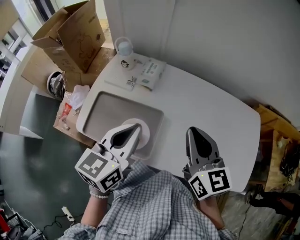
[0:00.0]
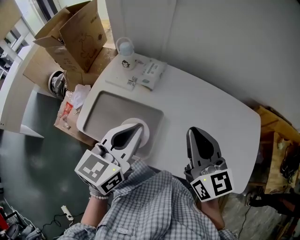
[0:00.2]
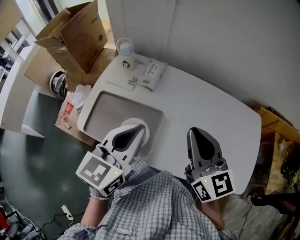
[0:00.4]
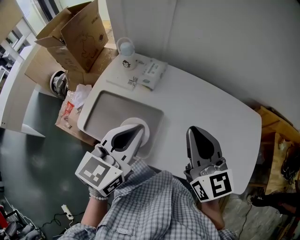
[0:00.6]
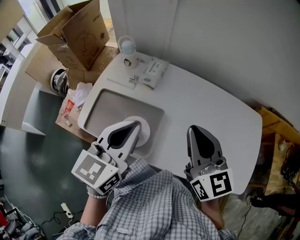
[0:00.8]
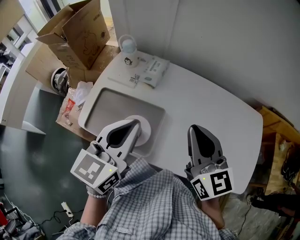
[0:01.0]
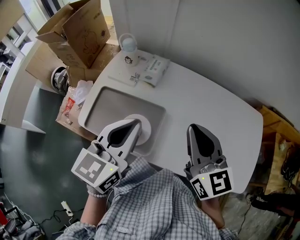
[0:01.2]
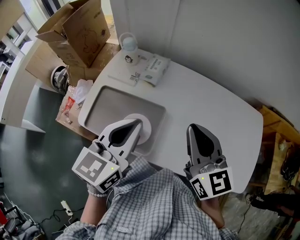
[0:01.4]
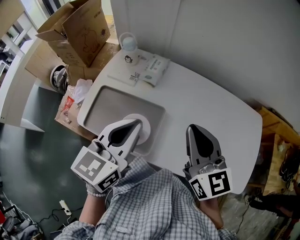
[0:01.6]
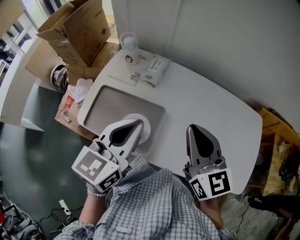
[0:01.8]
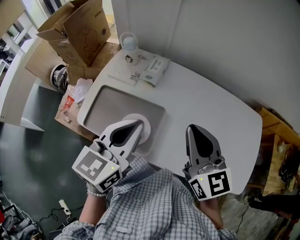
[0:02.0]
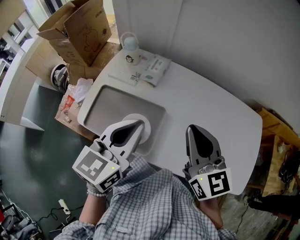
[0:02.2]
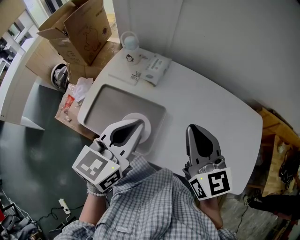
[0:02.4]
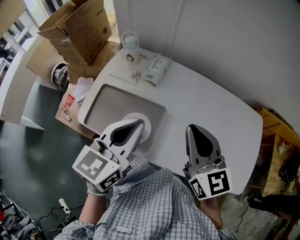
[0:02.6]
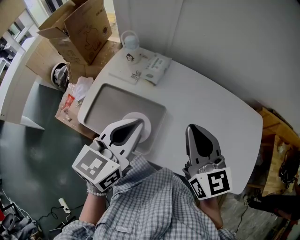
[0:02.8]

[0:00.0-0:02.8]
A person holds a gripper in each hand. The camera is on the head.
0:00.0 to 0:01.4: There are only small adjustments of the grippers.
0:01.4 to 0:02.8: Both grippers stay put.

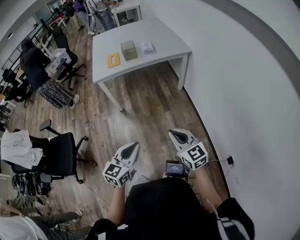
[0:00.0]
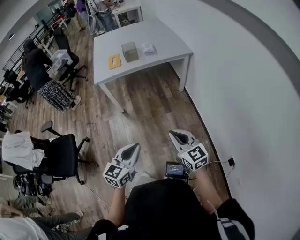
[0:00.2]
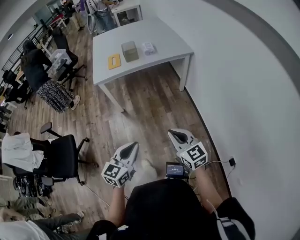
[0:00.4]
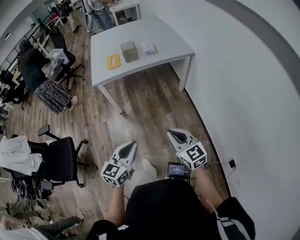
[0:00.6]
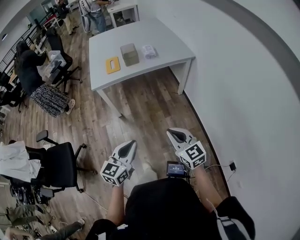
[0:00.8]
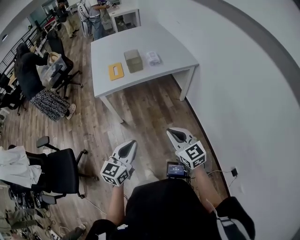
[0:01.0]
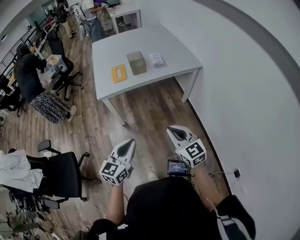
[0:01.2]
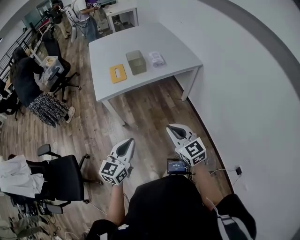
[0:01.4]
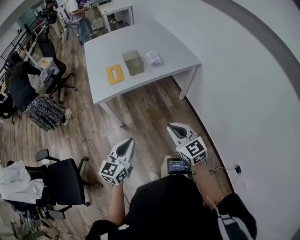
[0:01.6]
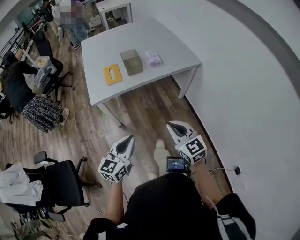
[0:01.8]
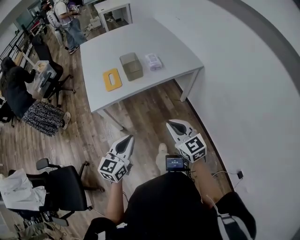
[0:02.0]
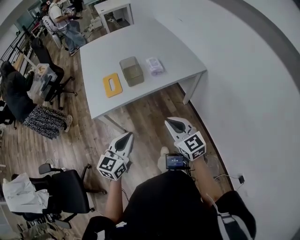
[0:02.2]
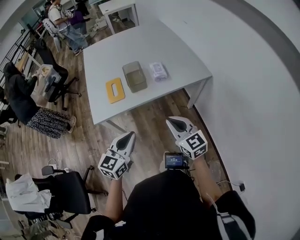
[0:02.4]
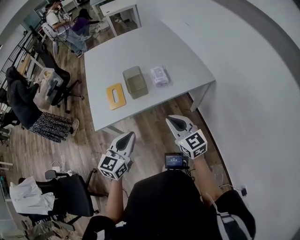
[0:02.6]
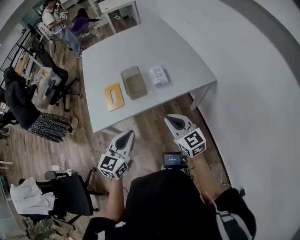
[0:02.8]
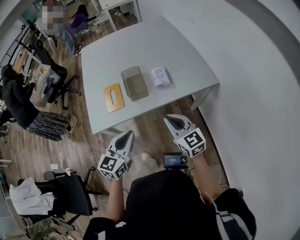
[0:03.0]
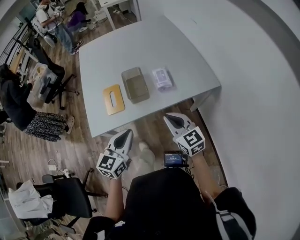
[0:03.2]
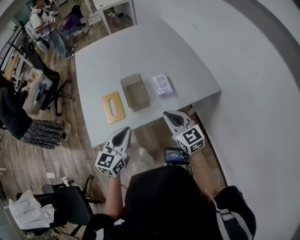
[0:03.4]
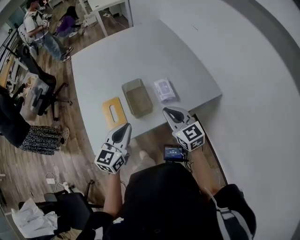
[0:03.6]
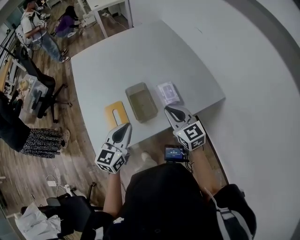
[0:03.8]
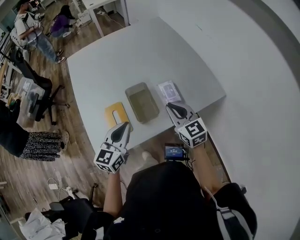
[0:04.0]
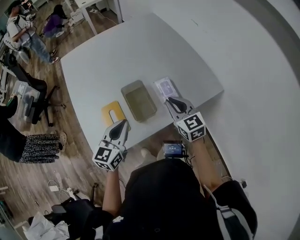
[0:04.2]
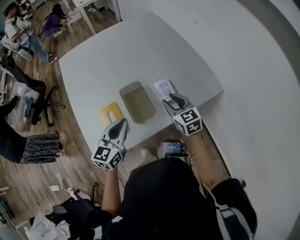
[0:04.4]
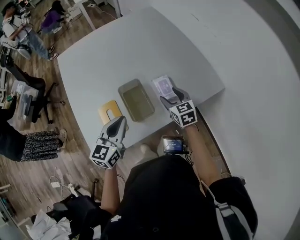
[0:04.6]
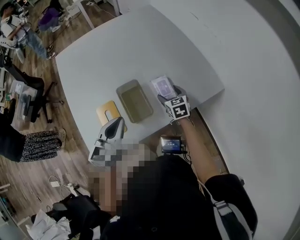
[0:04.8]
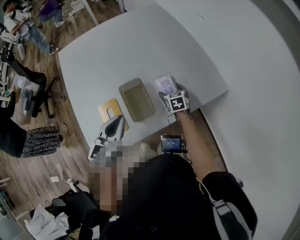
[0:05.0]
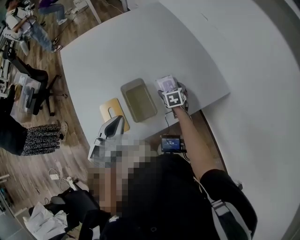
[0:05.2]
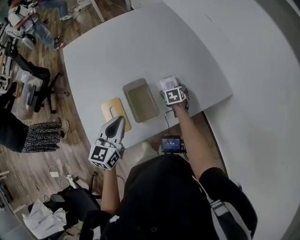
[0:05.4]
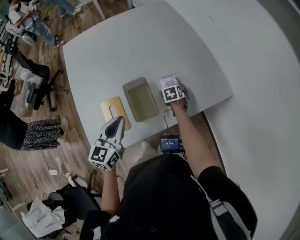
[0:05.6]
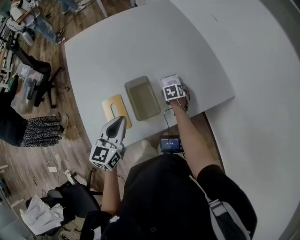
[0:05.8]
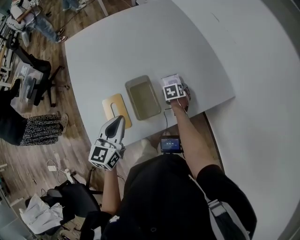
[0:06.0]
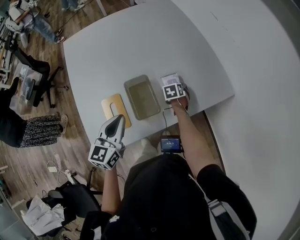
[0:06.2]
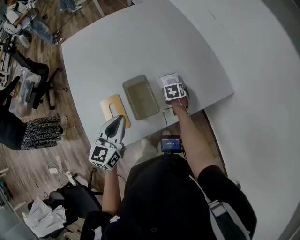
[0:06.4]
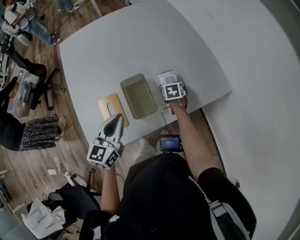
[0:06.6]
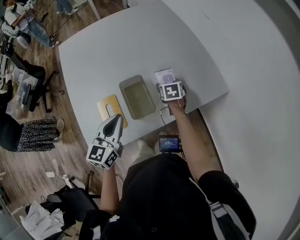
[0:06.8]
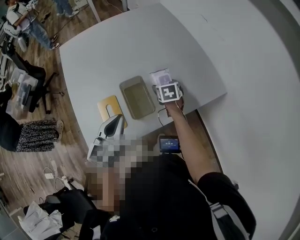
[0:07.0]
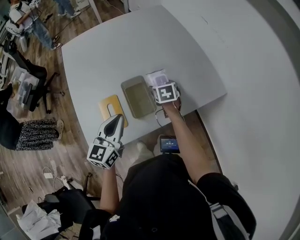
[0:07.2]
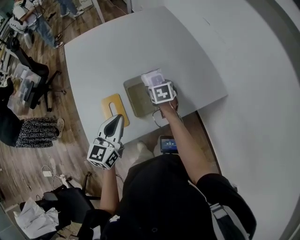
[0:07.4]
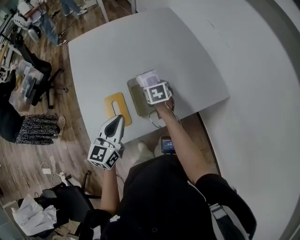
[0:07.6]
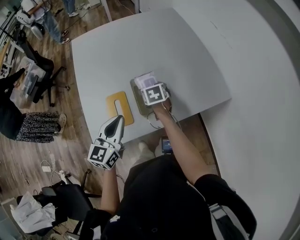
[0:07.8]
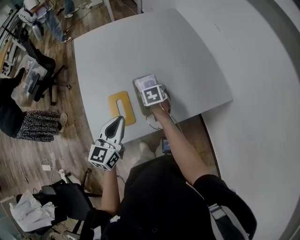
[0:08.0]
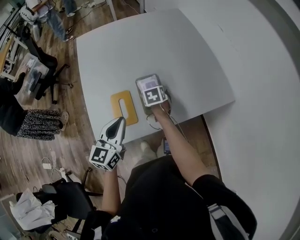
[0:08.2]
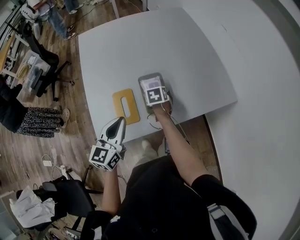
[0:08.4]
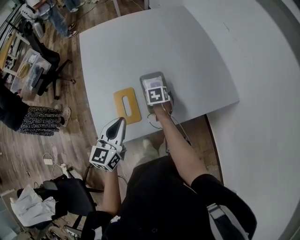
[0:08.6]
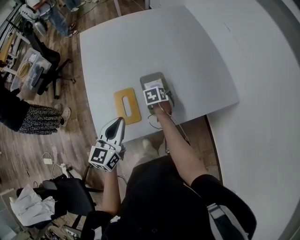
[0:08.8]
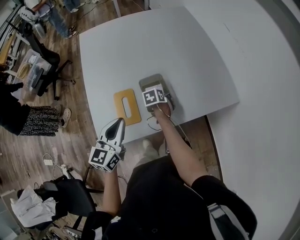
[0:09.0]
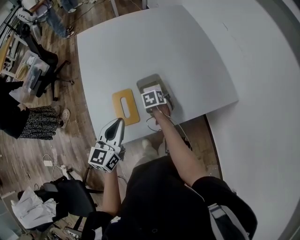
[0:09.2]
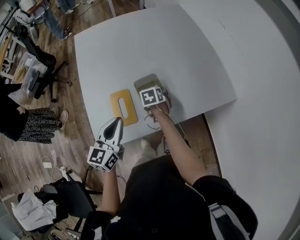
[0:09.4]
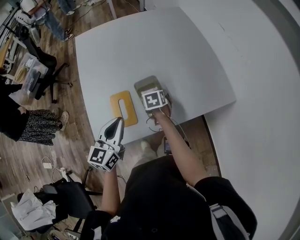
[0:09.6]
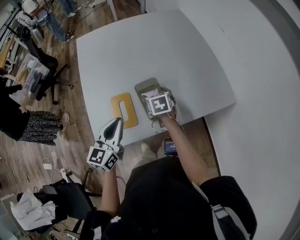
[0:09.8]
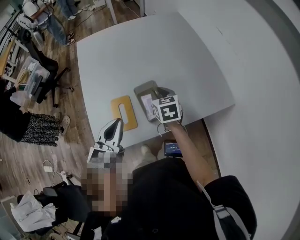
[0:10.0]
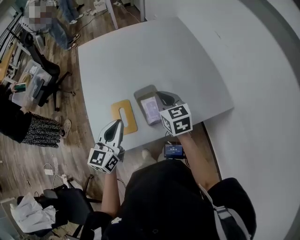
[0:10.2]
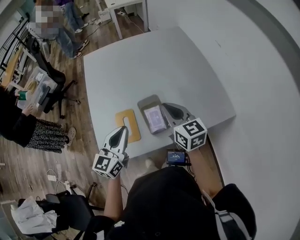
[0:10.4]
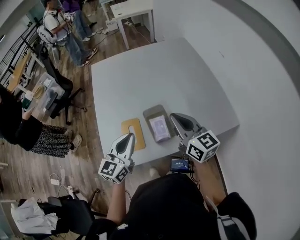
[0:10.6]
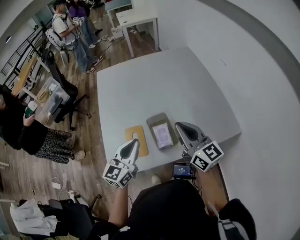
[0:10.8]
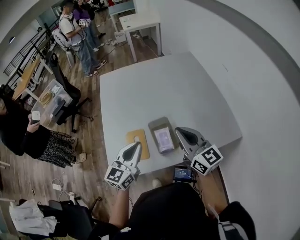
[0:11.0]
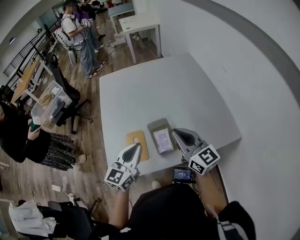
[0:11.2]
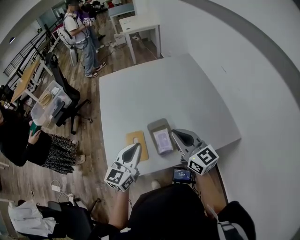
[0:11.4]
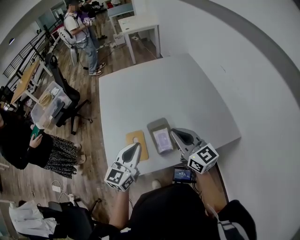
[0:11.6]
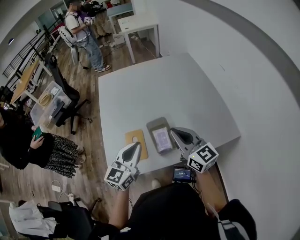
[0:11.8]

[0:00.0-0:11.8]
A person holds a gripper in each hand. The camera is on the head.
0:00.0 to 0:01.4: The grippers both shift forward and to the left by about 25 cm.
0:01.4 to 0:03.0: Both grippers move forward, roughly 35 cm.
0:03.0 to 0:04.4: The grippers both shift forward by approximately 25 cm. The right gripper turns by roughly 20 degrees.
0:04.4 to 0:06.0: The right gripper is displaced downward and forward by approximately 25 cm, points its fingers approximately 40 degrees further downward, and opens its fingers.
0:06.0 to 0:07.4: The right gripper heads upward and to the left, covering roughly 15 cm.
0:07.4 to 0:08.8: The left gripper goes some 5 cm to the left. The right gripper is displaced downward and to the left by some 10 cm.
0:08.8 to 0:10.4: The right gripper travels upward by some 30 cm, tilts its fingers about 50 degrees upward, and closes. The left gripper heads upward, covering roughly 5 cm.
0:10.4 to 0:11.8: The right gripper goes roughly 5 cm upward.

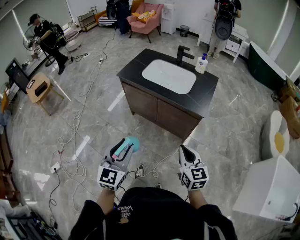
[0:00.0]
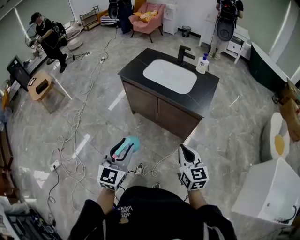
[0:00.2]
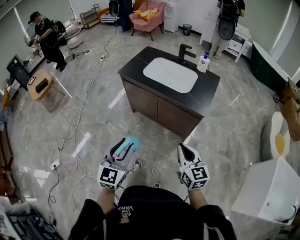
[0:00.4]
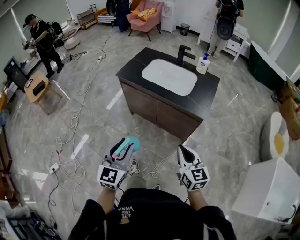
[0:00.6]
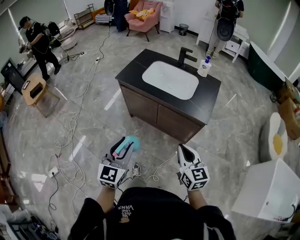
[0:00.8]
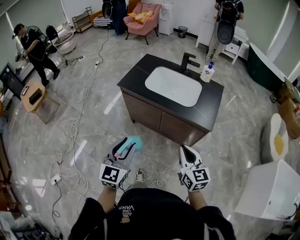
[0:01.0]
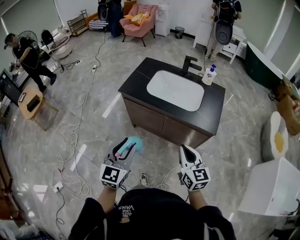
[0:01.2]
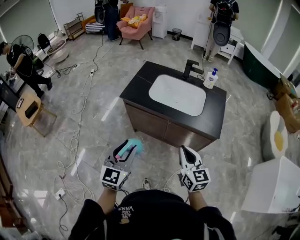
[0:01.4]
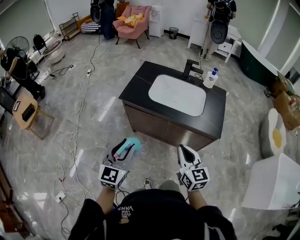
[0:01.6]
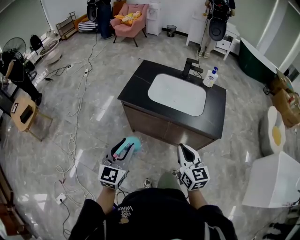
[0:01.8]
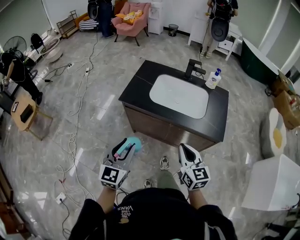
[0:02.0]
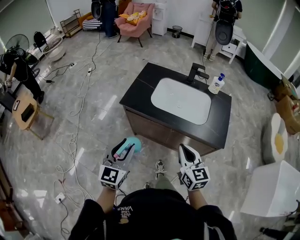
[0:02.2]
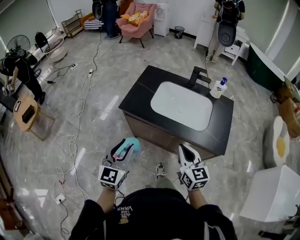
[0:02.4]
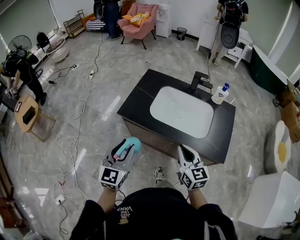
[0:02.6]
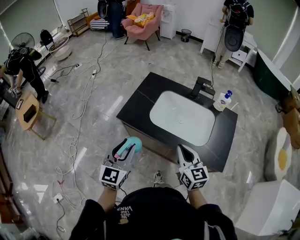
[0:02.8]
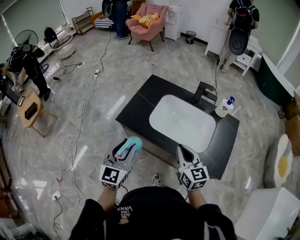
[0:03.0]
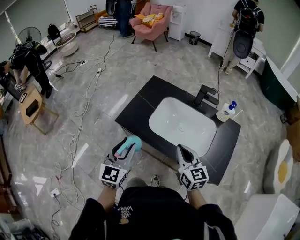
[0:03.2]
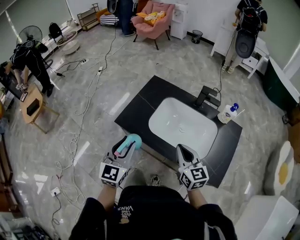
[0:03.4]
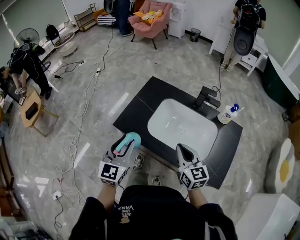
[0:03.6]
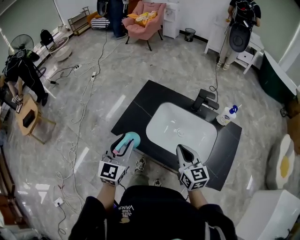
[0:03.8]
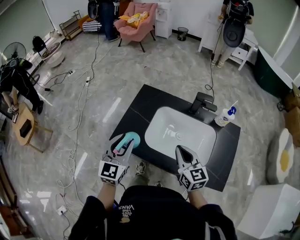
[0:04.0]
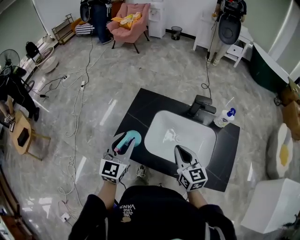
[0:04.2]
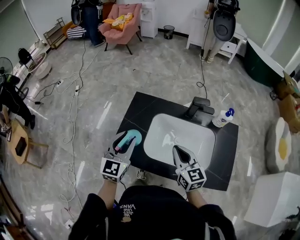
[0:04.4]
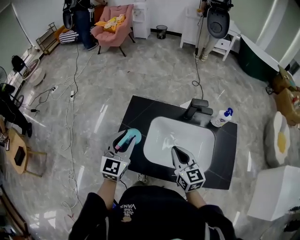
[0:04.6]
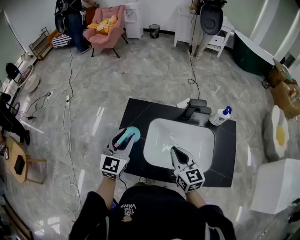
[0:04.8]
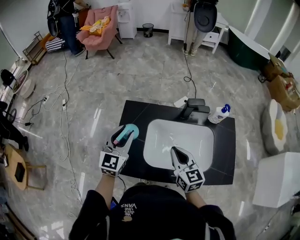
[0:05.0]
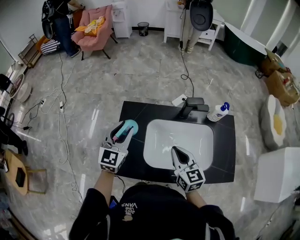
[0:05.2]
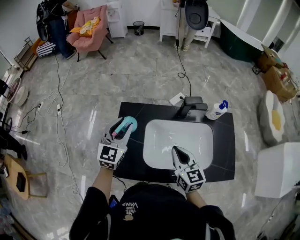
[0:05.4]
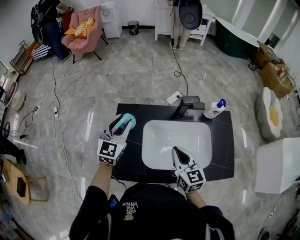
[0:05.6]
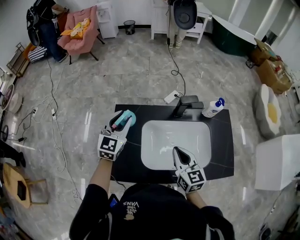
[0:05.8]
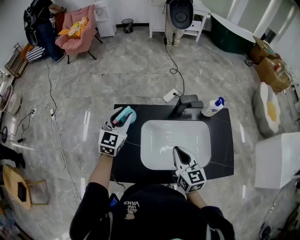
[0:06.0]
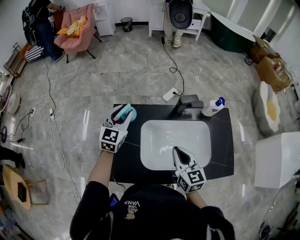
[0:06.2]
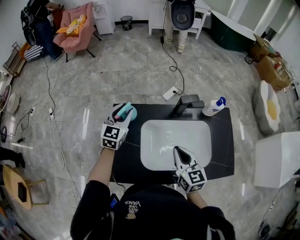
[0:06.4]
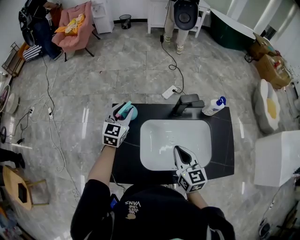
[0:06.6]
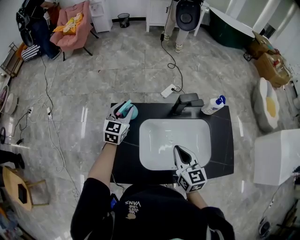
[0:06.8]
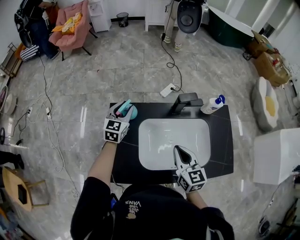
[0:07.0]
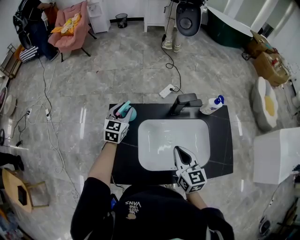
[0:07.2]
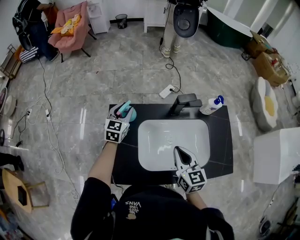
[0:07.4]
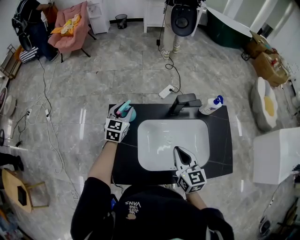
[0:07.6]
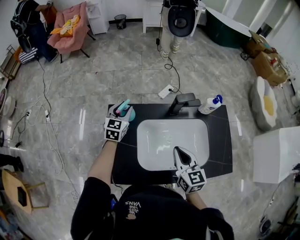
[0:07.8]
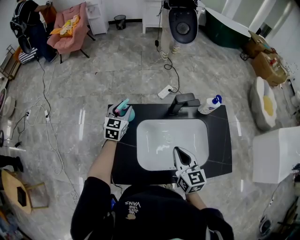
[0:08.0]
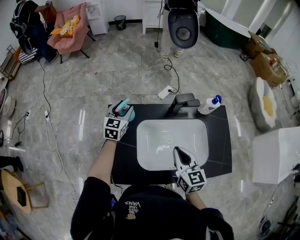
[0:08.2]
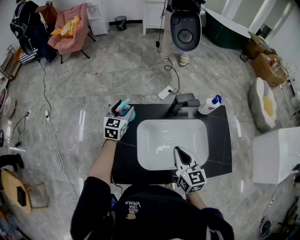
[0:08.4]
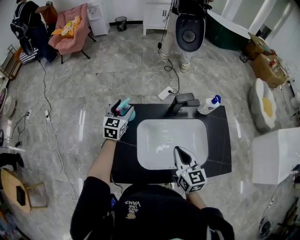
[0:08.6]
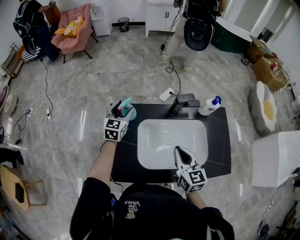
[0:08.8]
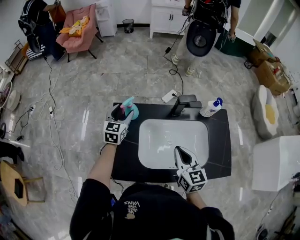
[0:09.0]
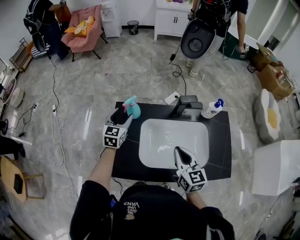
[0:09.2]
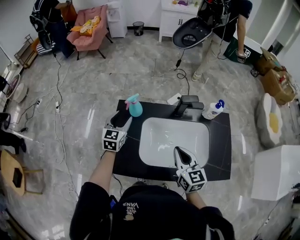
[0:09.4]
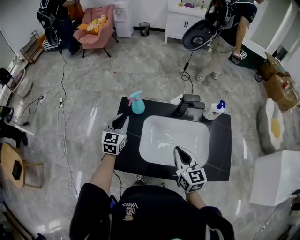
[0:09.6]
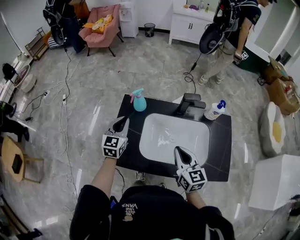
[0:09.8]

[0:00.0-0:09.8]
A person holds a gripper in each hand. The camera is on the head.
0:00.0 to 0:01.4: Both grippers move forward and to the left, some 25 cm.
0:01.4 to 0:02.8: The two grippers go about 20 cm forward.
0:02.8 to 0:04.2: Both grippers move forward, approximately 20 cm.
0:04.2 to 0:05.6: The left gripper goes roughly 20 cm forward, and swivels about 20 degrees. Meanwhile the right gripper is displaced forward by some 5 cm.
0:05.6 to 0:07.0: The left gripper is displaced forward and downward by some 15 cm.
0:07.0 to 0:08.4: The left gripper opens.
0:08.4 to 0:09.8: The right gripper shifts roughly 5 cm backward. The left gripper moves backward, some 20 cm, and closes its fingers.
